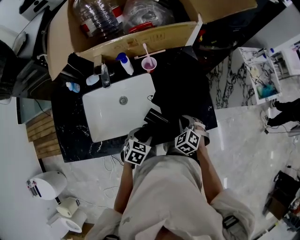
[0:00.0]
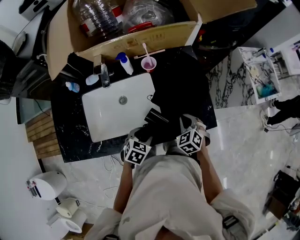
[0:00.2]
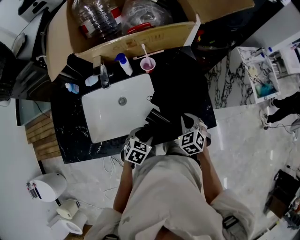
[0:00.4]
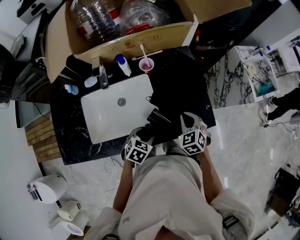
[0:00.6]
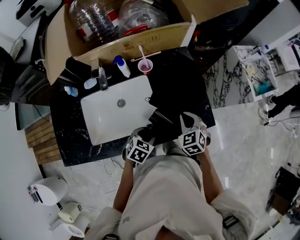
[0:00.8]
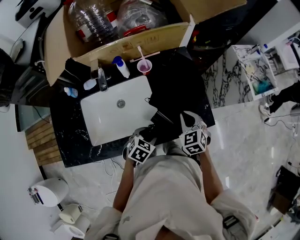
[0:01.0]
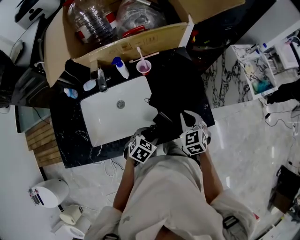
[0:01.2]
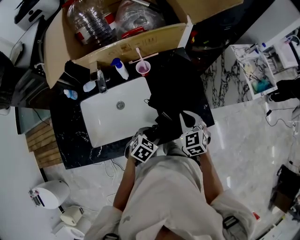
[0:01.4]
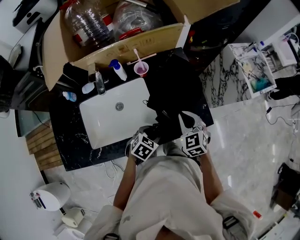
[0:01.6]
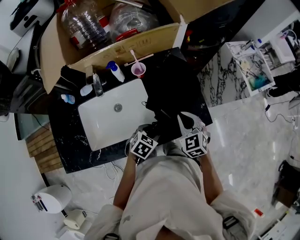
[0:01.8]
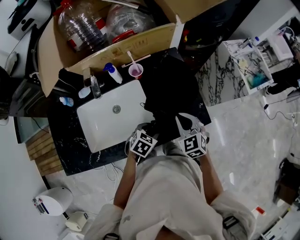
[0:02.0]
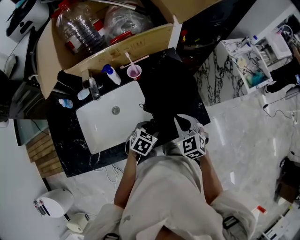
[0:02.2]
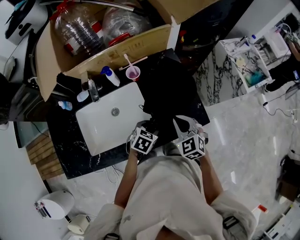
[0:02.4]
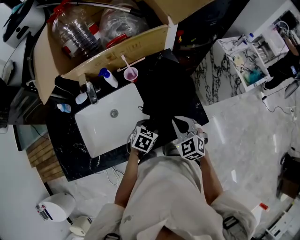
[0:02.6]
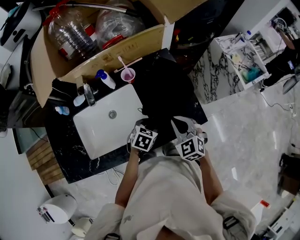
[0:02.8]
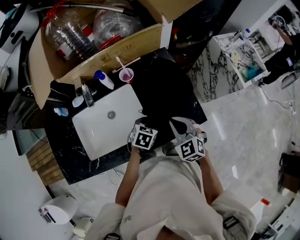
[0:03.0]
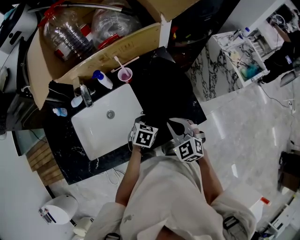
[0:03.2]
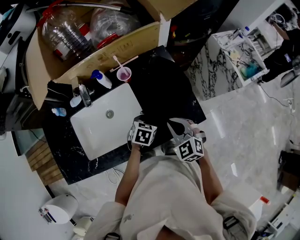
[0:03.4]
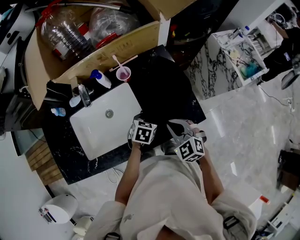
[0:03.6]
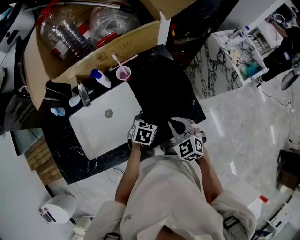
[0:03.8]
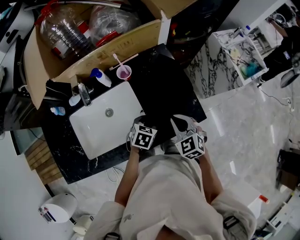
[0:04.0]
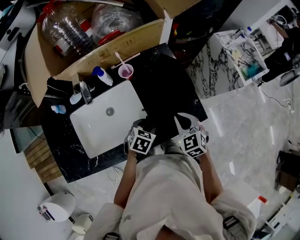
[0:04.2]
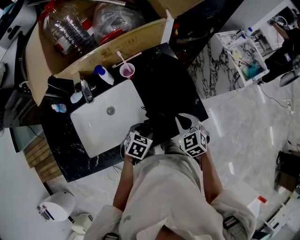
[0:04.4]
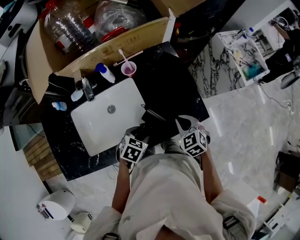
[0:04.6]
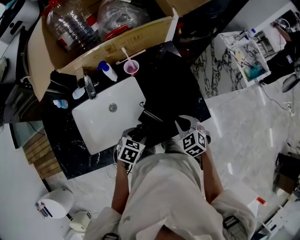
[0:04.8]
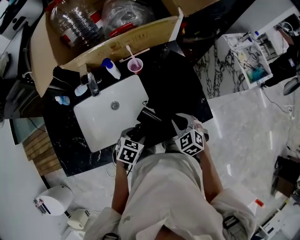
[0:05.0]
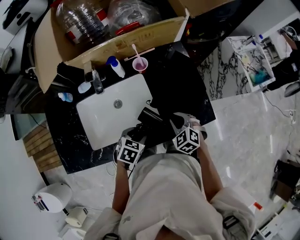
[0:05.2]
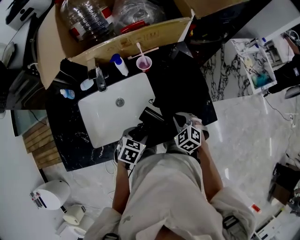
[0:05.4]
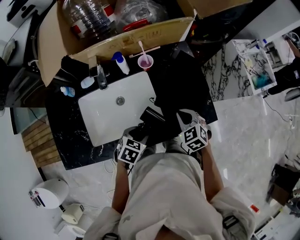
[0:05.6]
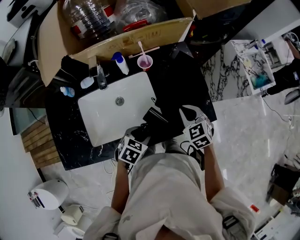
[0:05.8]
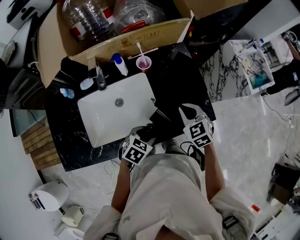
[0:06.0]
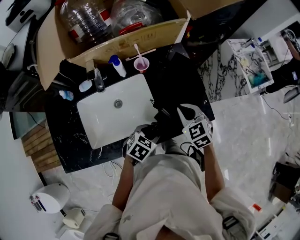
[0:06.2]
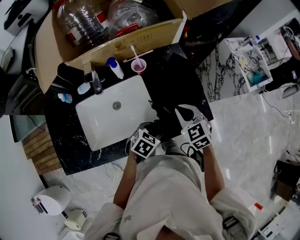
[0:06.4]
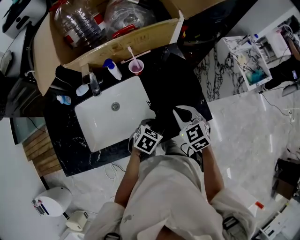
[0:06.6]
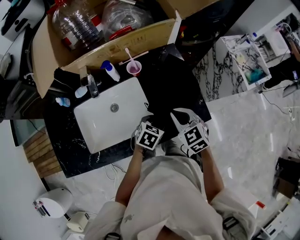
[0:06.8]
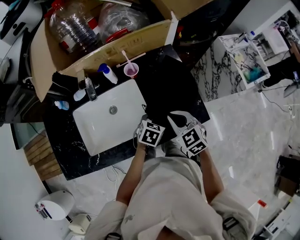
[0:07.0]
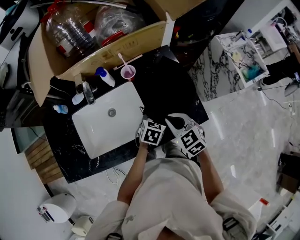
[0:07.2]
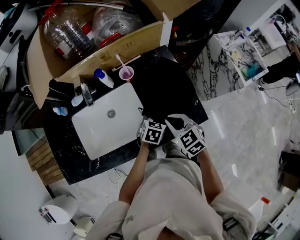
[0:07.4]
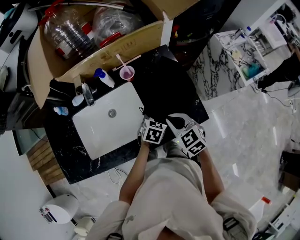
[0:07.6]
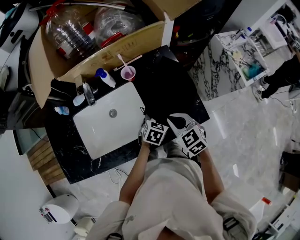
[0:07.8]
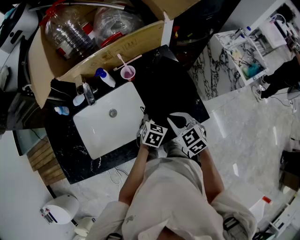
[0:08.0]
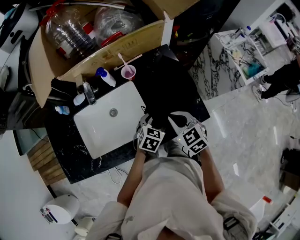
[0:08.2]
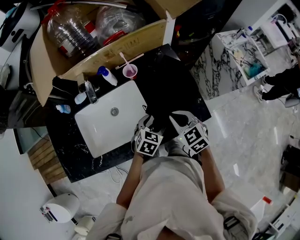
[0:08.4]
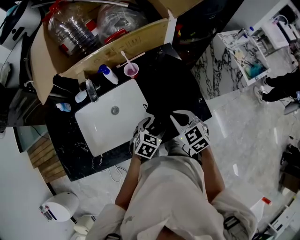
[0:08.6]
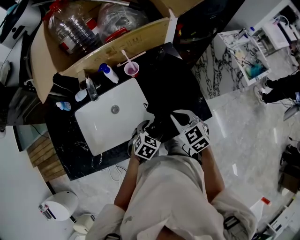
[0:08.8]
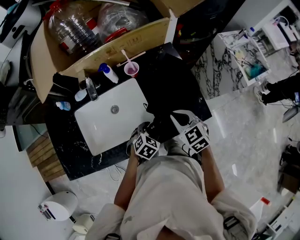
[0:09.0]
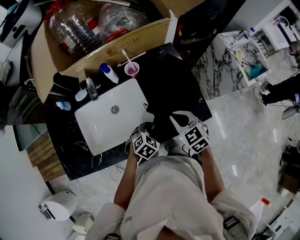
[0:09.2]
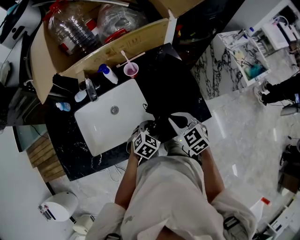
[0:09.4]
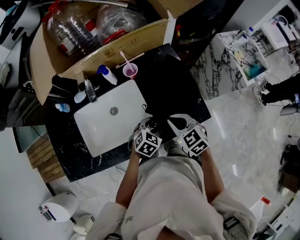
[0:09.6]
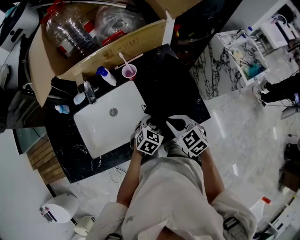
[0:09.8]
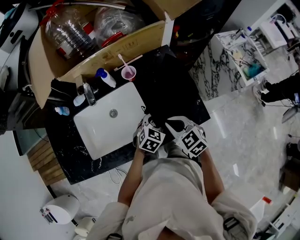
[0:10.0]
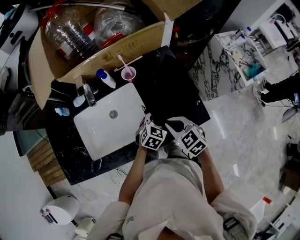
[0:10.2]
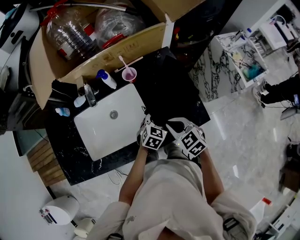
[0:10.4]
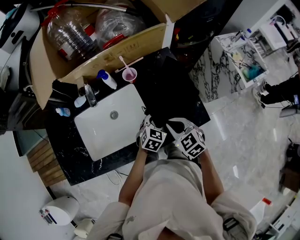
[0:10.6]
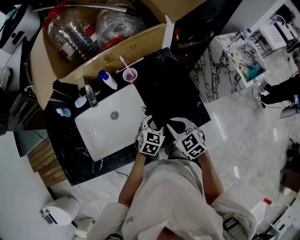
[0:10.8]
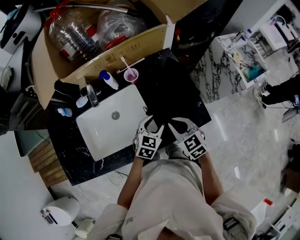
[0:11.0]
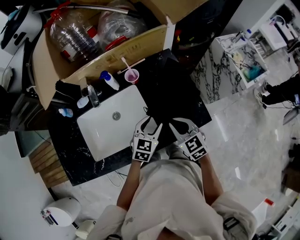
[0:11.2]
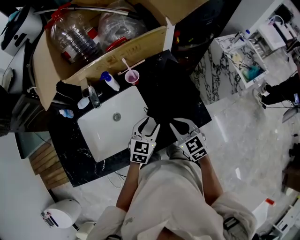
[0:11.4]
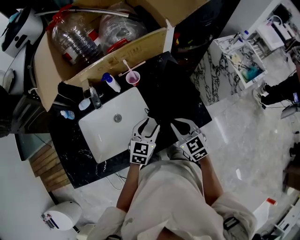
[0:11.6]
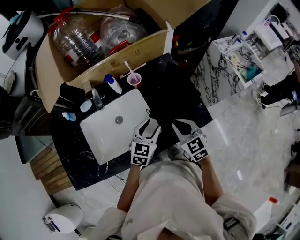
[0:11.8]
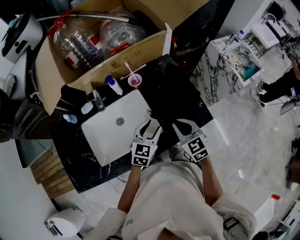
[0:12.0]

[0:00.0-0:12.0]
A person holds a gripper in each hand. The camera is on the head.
0:00.0 to 0:01.6: The left gripper shifts roughly 5 cm to the right, while the right gripper shifts roughly 10 cm upward, and changes its angle by approximately 30 degrees.
0:01.6 to 0:03.0: The left gripper shifts roughly 10 cm forward.
0:03.0 to 0:04.4: The left gripper ends up roughly 5 cm from where it was.
0:04.4 to 0:06.0: The left gripper changes place by some 5 cm; the right gripper ends up about 5 cm from where it was.
0:06.0 to 0:07.6: The left gripper shifts about 15 cm forward and to the right.
0:07.6 to 0:09.0: The left gripper moves backward and to the left, some 10 cm.
0:09.0 to 0:10.4: The left gripper is displaced forward and to the right by roughly 10 cm.
0:10.4 to 0:12.0: The left gripper goes some 10 cm upward and to the left.

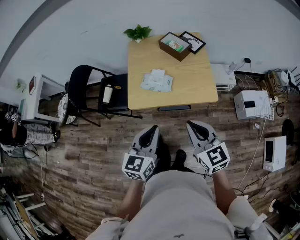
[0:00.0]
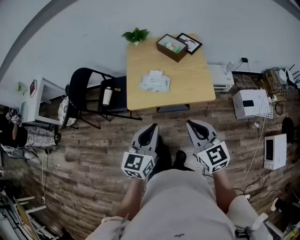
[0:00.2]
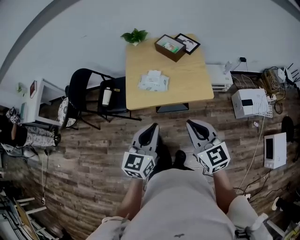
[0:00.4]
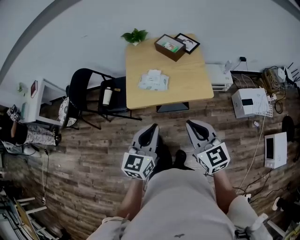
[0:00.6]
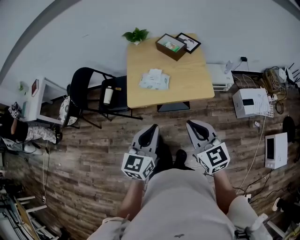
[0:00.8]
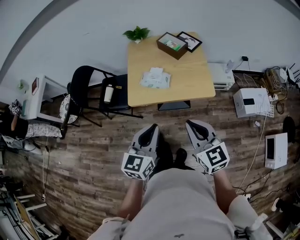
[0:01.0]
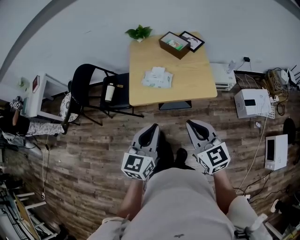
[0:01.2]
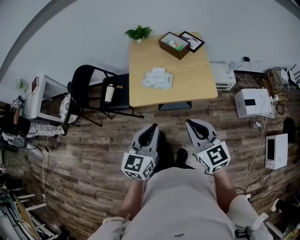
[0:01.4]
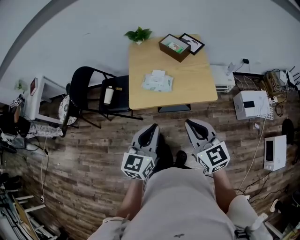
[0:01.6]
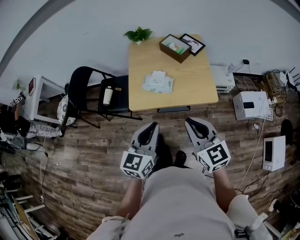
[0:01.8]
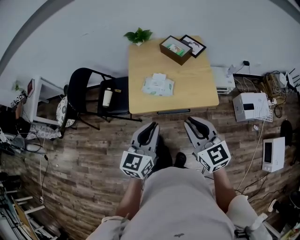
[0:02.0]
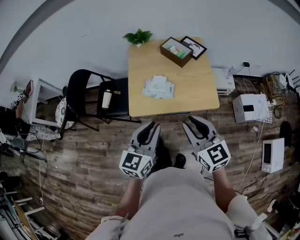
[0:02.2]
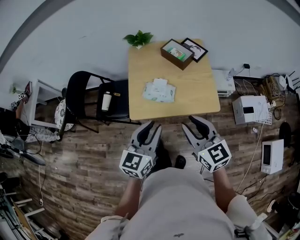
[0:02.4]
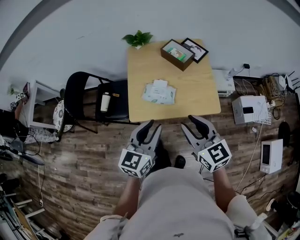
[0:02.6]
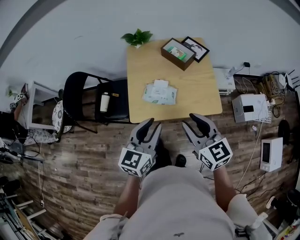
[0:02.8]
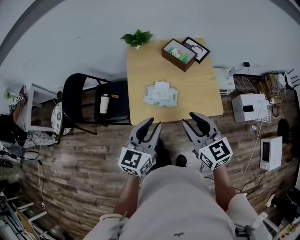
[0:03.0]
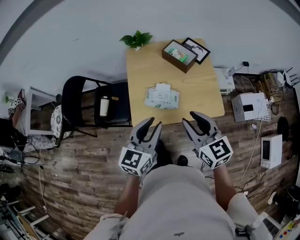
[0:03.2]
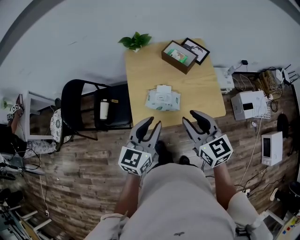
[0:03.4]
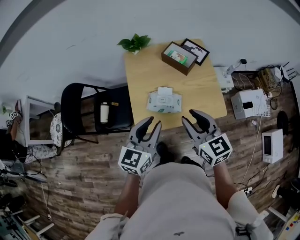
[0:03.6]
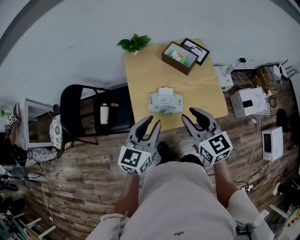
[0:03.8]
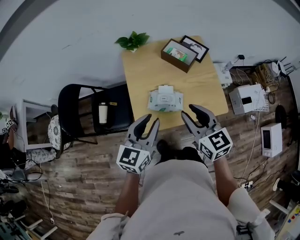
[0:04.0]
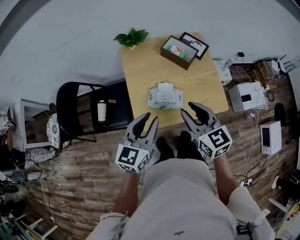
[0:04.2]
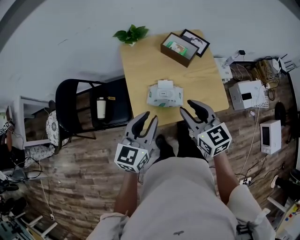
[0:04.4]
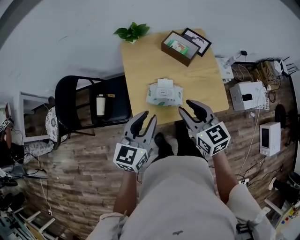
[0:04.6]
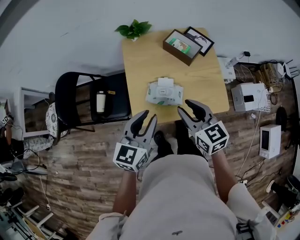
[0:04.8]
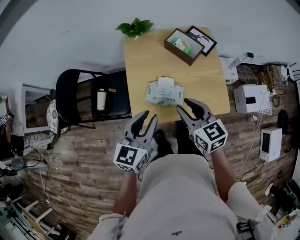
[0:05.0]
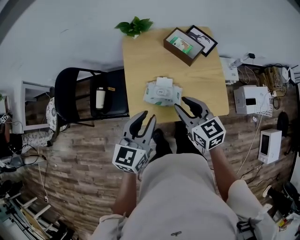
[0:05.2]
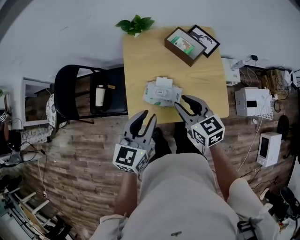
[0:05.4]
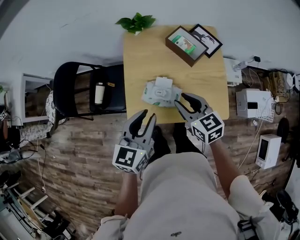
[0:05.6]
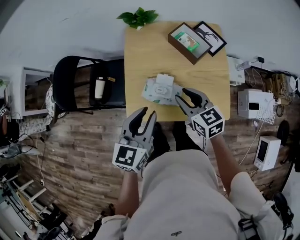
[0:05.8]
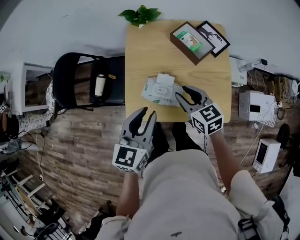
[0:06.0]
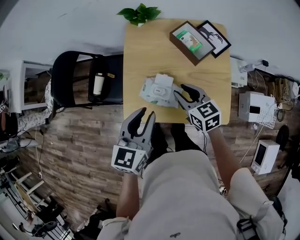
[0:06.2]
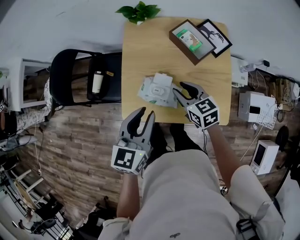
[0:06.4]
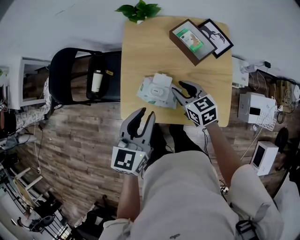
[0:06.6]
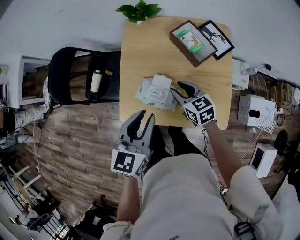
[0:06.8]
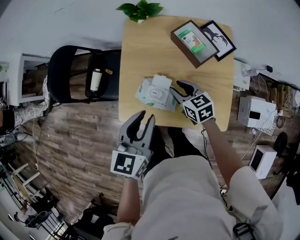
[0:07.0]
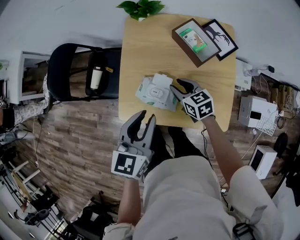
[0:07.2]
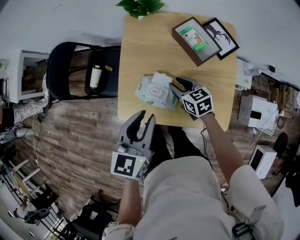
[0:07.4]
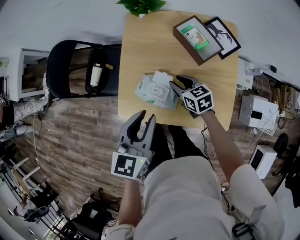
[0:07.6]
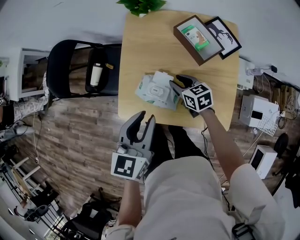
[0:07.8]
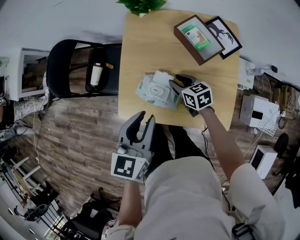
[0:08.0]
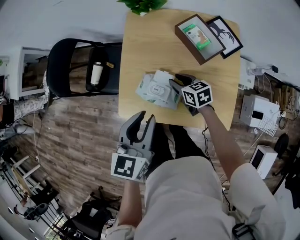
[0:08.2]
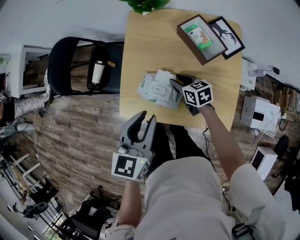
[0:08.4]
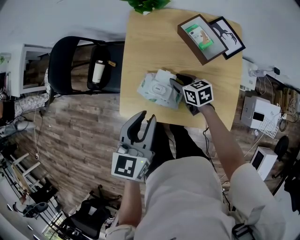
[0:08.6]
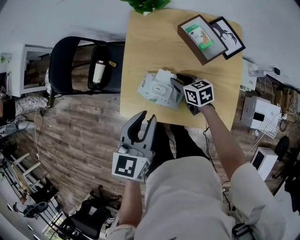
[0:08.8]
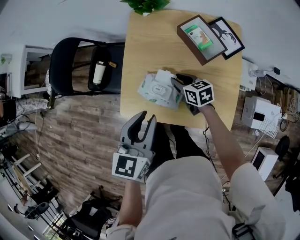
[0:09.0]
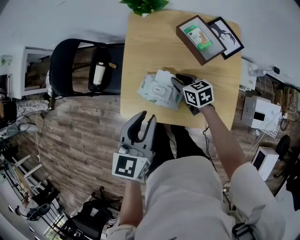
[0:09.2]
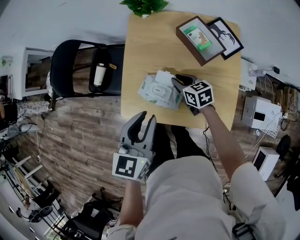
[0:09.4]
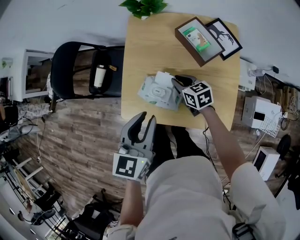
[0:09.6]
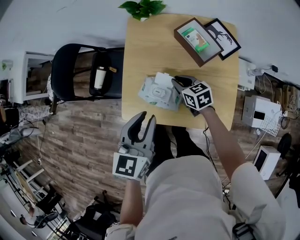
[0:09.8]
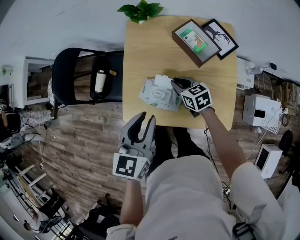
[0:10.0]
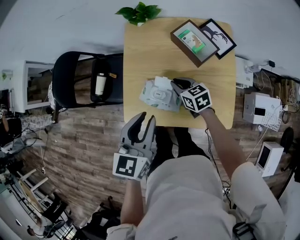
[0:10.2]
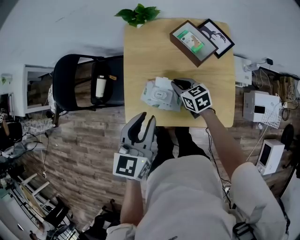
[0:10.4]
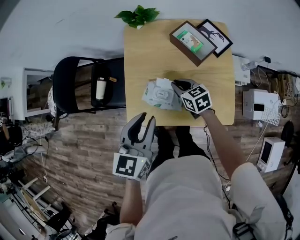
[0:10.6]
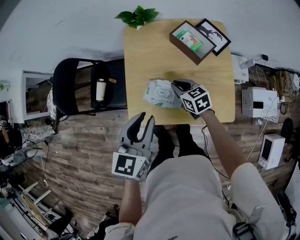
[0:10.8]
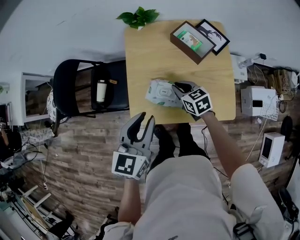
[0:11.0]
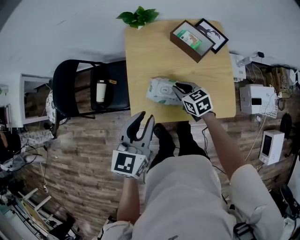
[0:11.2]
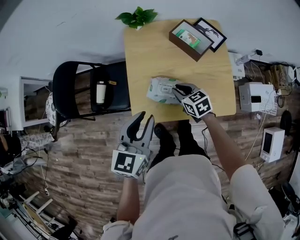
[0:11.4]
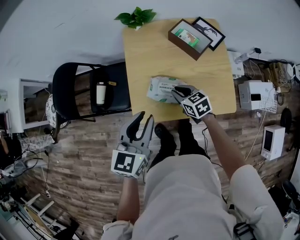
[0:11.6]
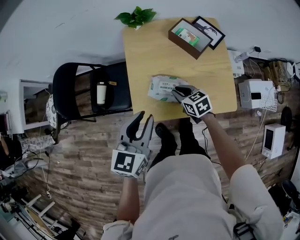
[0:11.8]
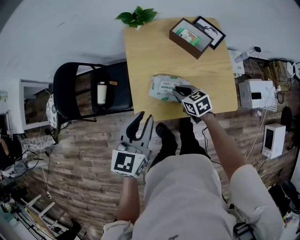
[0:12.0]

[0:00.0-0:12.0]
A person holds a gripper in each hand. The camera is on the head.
0:00.0 to 0:01.6: The grippers stay close to where they were, moving slightly.
0:01.6 to 0:03.0: Both grippers move forward, about 15 cm. The right gripper opens.
0:03.0 to 0:04.4: The right gripper moves forward and to the left, approximately 10 cm. The left gripper heads to the left and forward, covering some 10 cm.
0:04.4 to 0:06.0: The right gripper is displaced downward and forward by roughly 15 cm, and swivels about 20 degrees. The left gripper travels to the right by some 5 cm.
0:06.0 to 0:07.6: The right gripper travels downward and forward by approximately 15 cm.
0:07.6 to 0:10.4: The grippers make only small movements.
0:10.4 to 0:12.0: The right gripper goes roughly 10 cm backward and to the left. The left gripper goes some 10 cm to the left.
